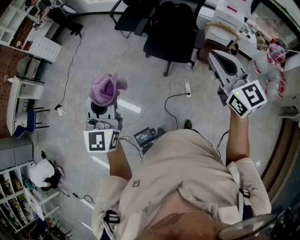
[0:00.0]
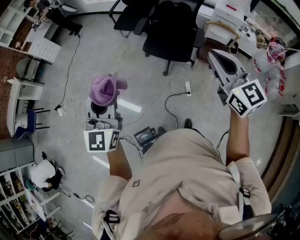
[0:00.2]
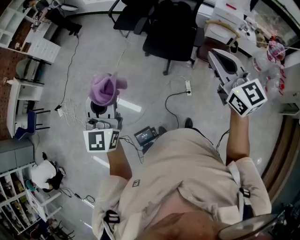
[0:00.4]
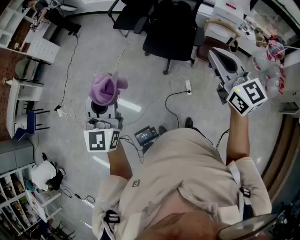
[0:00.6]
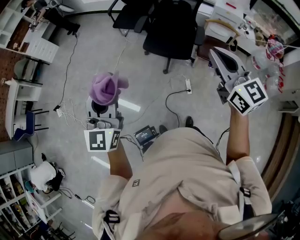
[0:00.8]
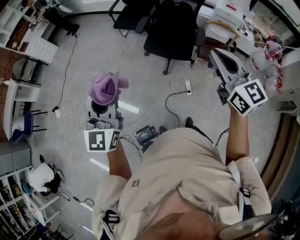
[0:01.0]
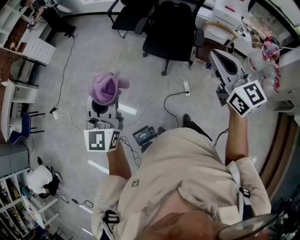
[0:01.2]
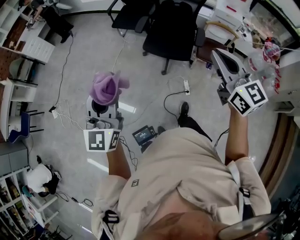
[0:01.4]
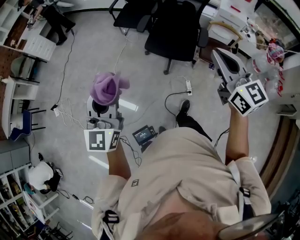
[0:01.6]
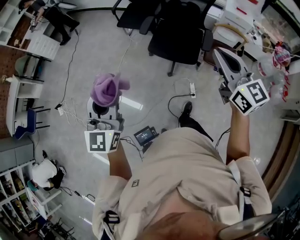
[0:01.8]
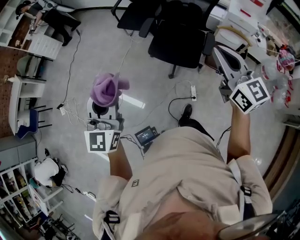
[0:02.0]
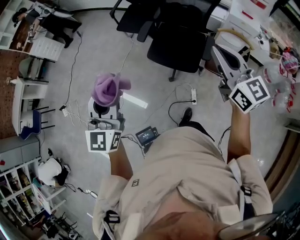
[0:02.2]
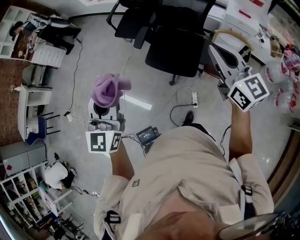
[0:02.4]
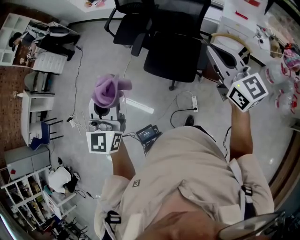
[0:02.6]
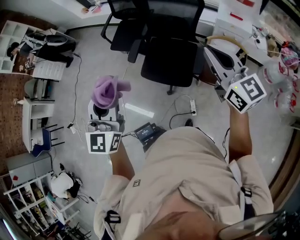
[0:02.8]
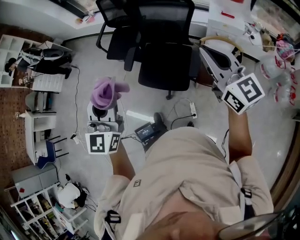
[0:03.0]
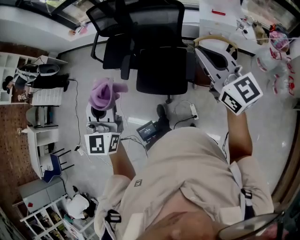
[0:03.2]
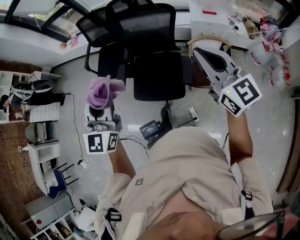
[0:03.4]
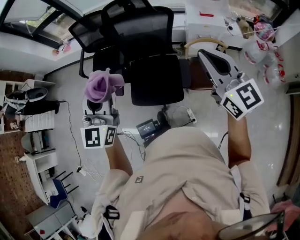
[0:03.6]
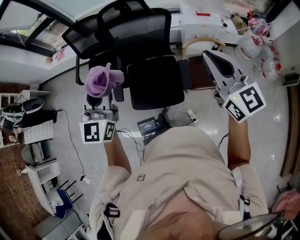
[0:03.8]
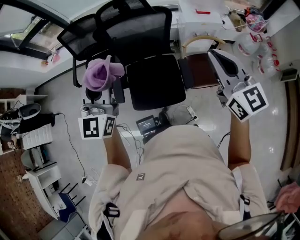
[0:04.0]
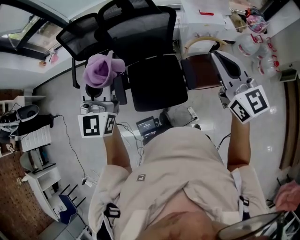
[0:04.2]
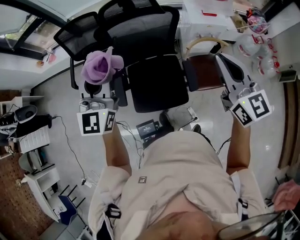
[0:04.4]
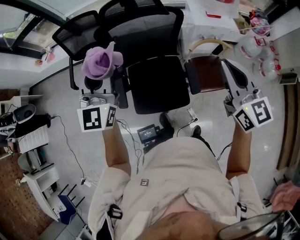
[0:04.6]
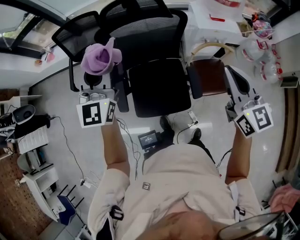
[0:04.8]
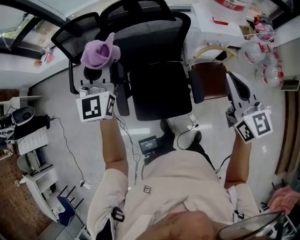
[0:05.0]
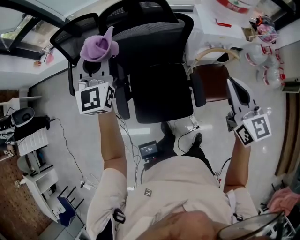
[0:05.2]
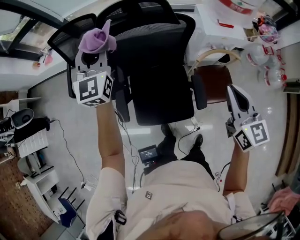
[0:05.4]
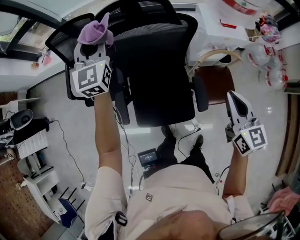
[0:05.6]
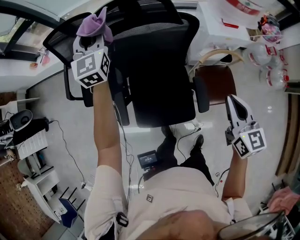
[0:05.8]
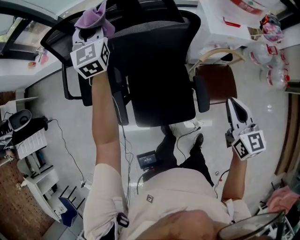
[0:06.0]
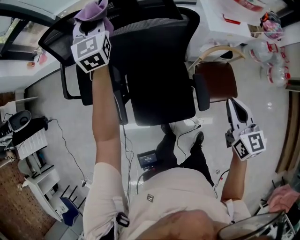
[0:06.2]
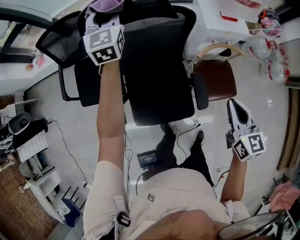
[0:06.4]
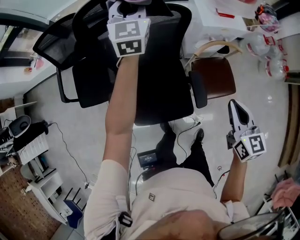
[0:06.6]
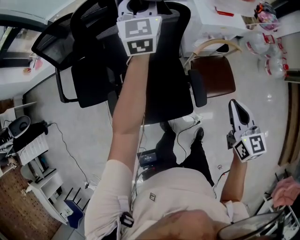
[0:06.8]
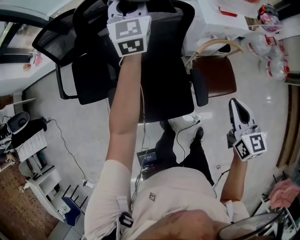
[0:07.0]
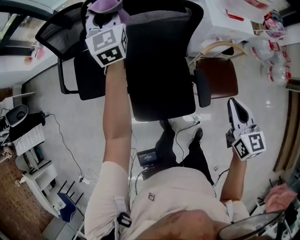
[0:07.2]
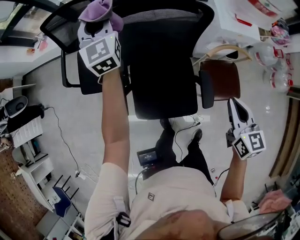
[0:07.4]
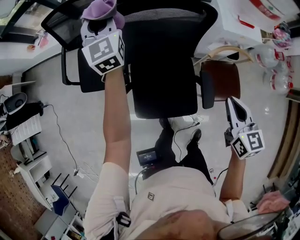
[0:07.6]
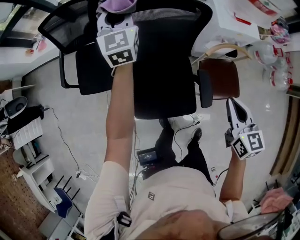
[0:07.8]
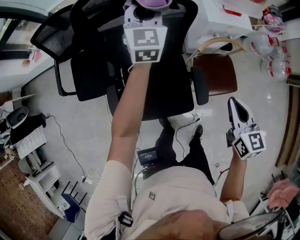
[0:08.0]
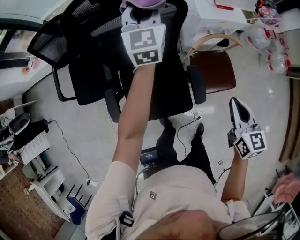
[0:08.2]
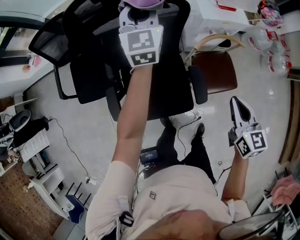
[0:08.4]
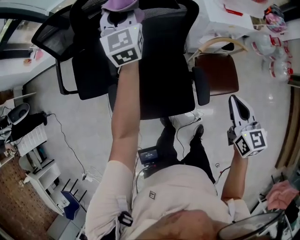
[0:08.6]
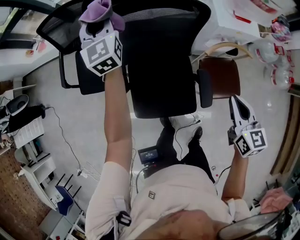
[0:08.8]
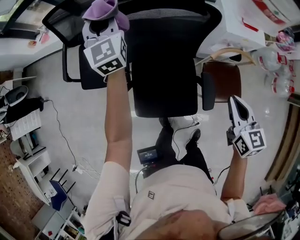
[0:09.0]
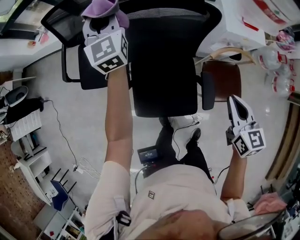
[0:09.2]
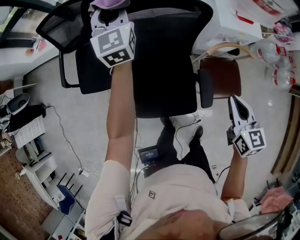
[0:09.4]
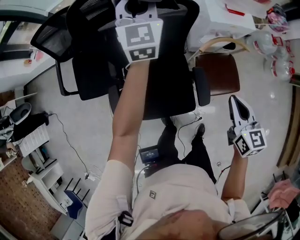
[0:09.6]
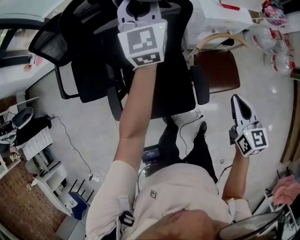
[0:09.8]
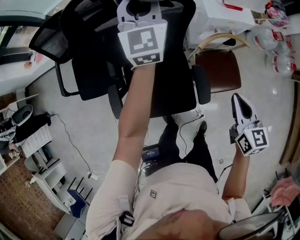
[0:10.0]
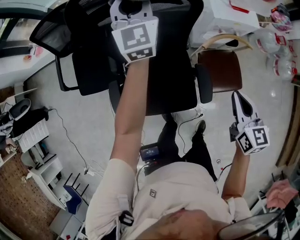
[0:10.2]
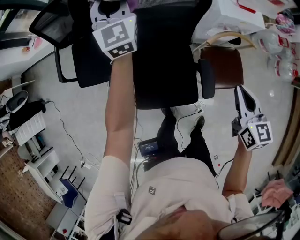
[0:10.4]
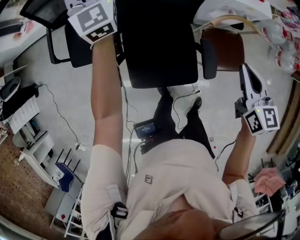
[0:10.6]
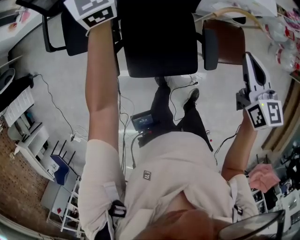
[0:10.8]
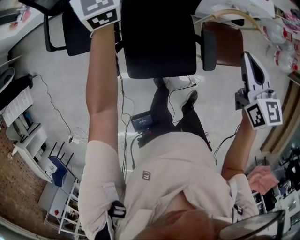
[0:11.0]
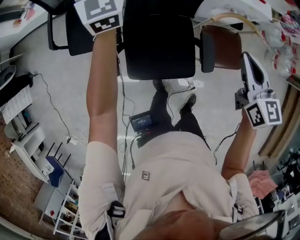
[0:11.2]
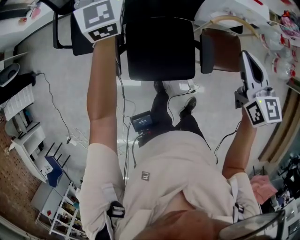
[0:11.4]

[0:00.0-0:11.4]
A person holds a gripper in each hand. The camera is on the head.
0:00.0 to 0:01.4: Both grippers travel together to the left, some 5 cm.
0:01.4 to 0:02.8: Both grippers move forward and to the right, some 40 cm.
0:02.8 to 0:04.2: The left gripper moves some 35 cm, and rotates approximately 30 degrees. Meanwhile the right gripper shifts by roughly 15 cm, and swivels roughly 30 degrees.
0:04.2 to 0:05.6: The left gripper shifts roughly 35 cm forward; the right gripper heads downward and forward, covering approximately 20 cm, and changes its angle by roughly 20 degrees.
0:05.6 to 0:07.2: The right gripper heads downward, covering approximately 10 cm, while the left gripper goes roughly 10 cm downward and forward, and moves approximately 20 cm to the right and comes back.
0:07.2 to 0:08.6: The left gripper swings left and right, approximately 25 cm each way, with 2 reversals. Meanwhile the right gripper goes to the right and returns, some 5 cm each way.
0:08.6 to 0:10.0: The left gripper goes roughly 10 cm to the right, while the right gripper moves roughly 5 cm to the left and comes back.
0:10.0 to 0:11.4: The left gripper shifts approximately 20 cm to the left; the right gripper goes some 10 cm to the left and upward.

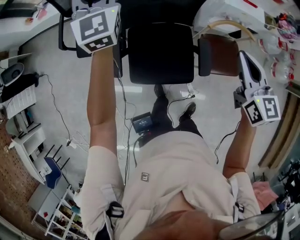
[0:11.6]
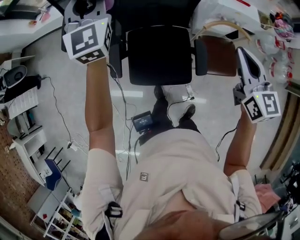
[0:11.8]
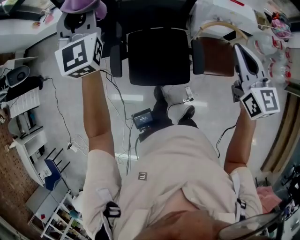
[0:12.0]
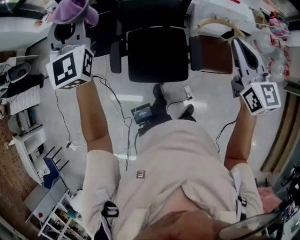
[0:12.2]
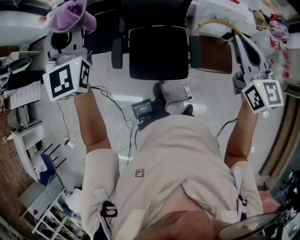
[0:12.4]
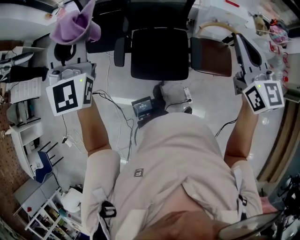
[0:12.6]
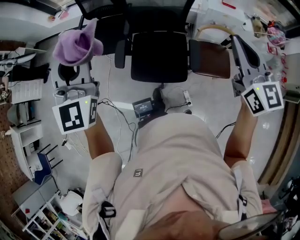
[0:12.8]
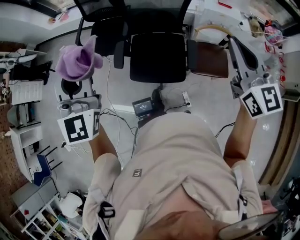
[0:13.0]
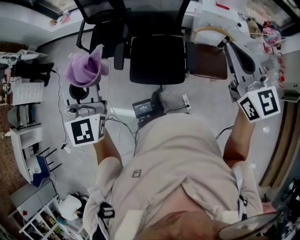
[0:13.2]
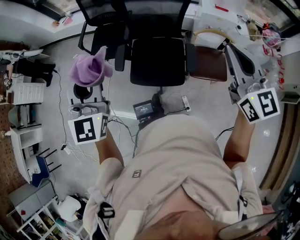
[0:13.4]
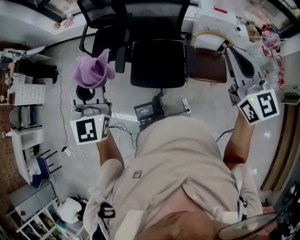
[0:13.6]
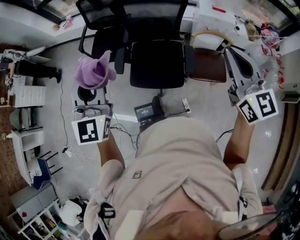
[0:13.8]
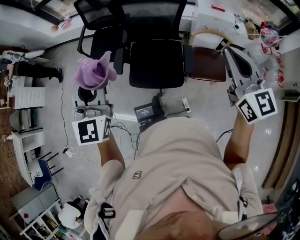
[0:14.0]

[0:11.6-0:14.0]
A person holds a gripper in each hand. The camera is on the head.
0:11.6 to 0:12.8: The right gripper heads upward and backward, covering about 25 cm. Meanwhile the left gripper goes roughly 40 cm backward and upward.
0:12.8 to 0:14.0: Both grippers move backward, about 10 cm.

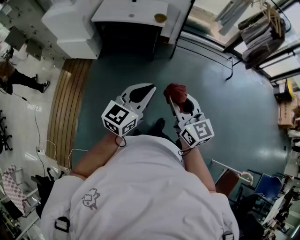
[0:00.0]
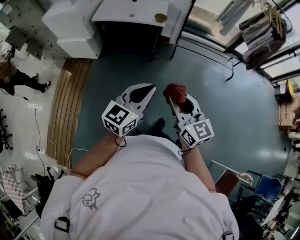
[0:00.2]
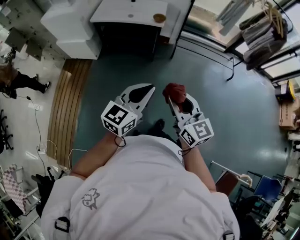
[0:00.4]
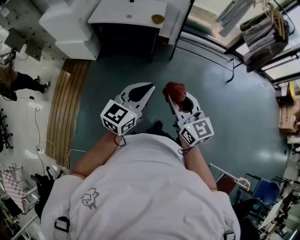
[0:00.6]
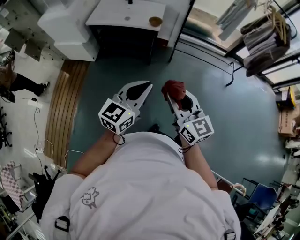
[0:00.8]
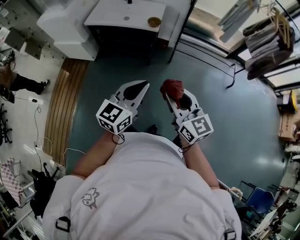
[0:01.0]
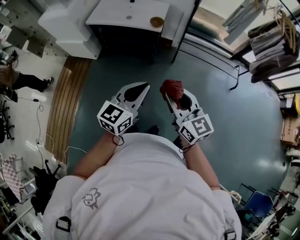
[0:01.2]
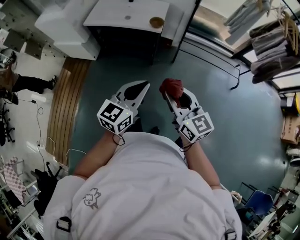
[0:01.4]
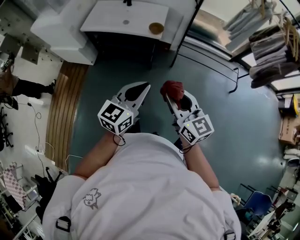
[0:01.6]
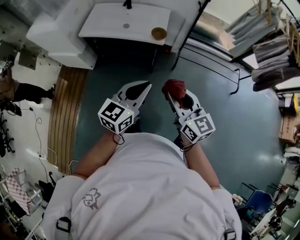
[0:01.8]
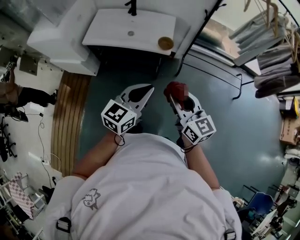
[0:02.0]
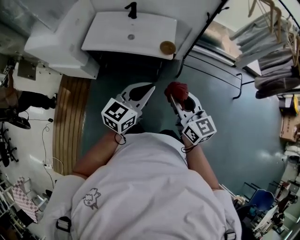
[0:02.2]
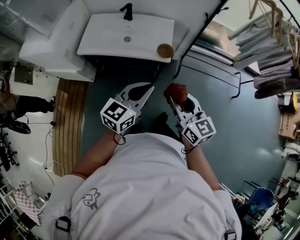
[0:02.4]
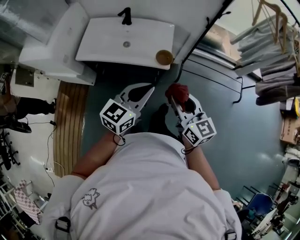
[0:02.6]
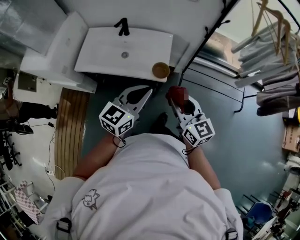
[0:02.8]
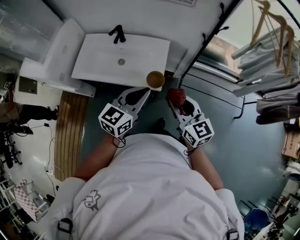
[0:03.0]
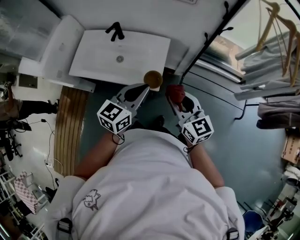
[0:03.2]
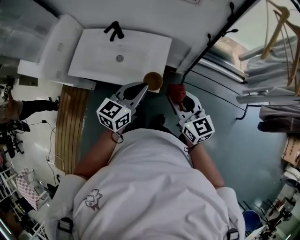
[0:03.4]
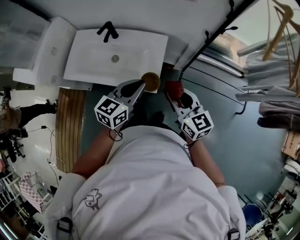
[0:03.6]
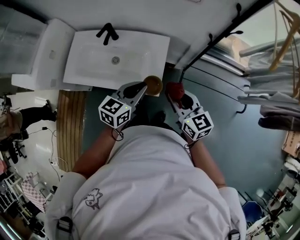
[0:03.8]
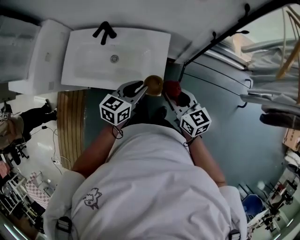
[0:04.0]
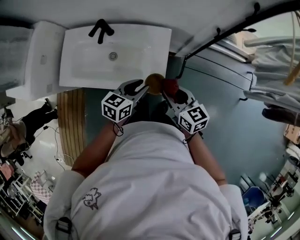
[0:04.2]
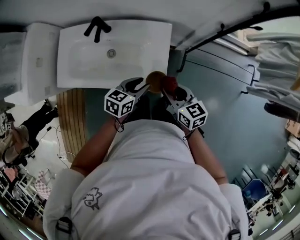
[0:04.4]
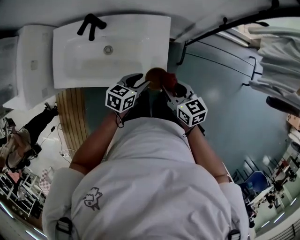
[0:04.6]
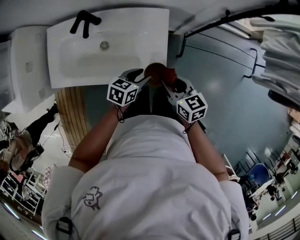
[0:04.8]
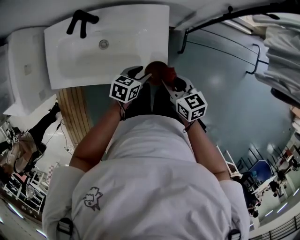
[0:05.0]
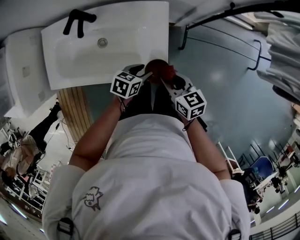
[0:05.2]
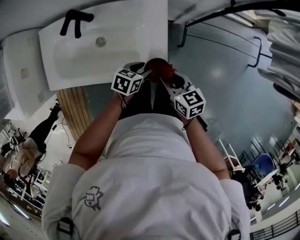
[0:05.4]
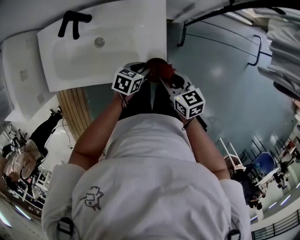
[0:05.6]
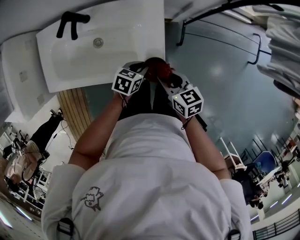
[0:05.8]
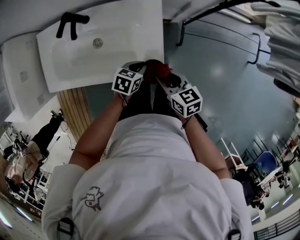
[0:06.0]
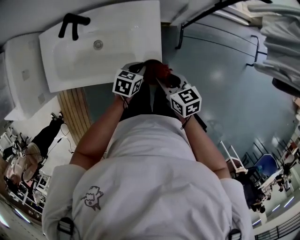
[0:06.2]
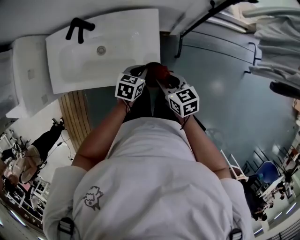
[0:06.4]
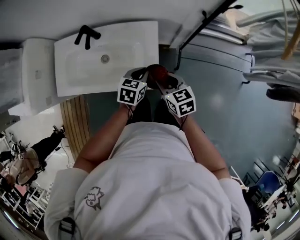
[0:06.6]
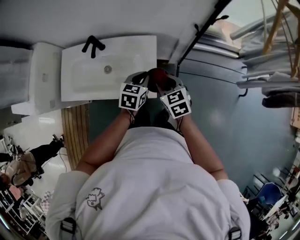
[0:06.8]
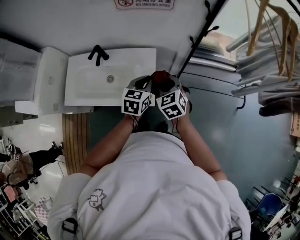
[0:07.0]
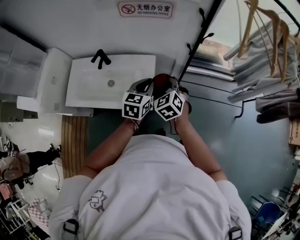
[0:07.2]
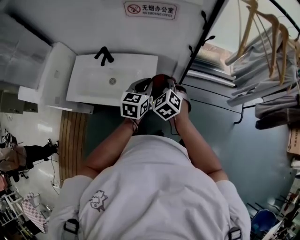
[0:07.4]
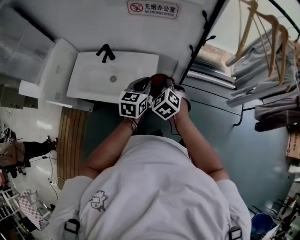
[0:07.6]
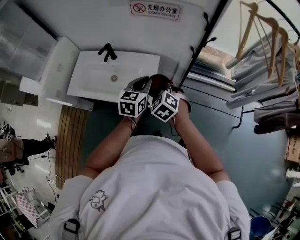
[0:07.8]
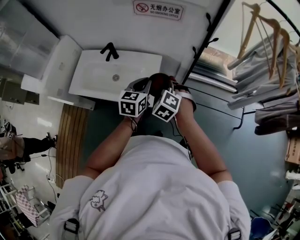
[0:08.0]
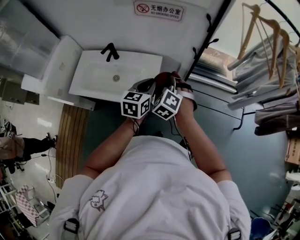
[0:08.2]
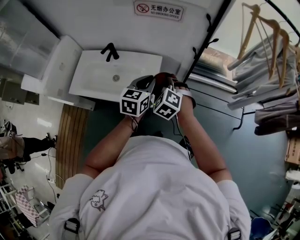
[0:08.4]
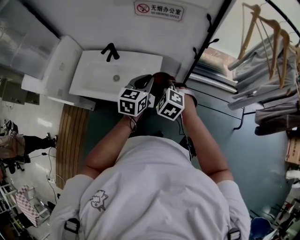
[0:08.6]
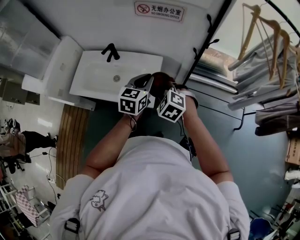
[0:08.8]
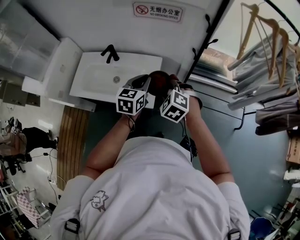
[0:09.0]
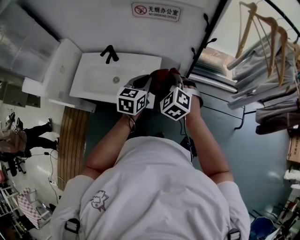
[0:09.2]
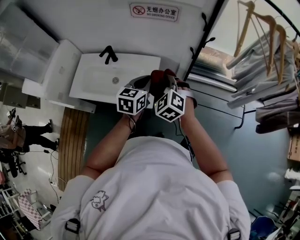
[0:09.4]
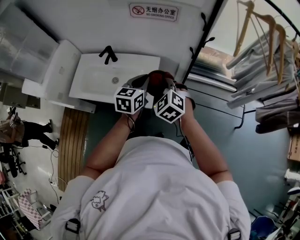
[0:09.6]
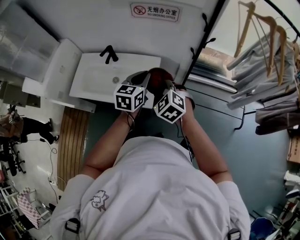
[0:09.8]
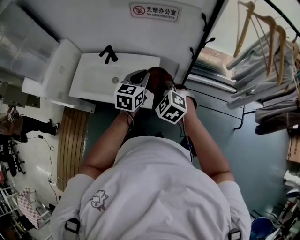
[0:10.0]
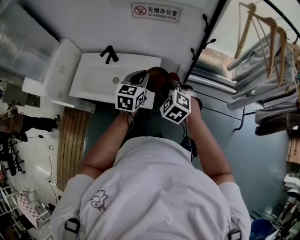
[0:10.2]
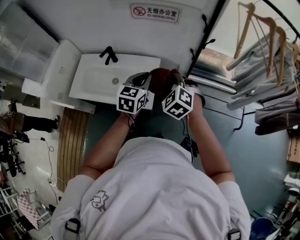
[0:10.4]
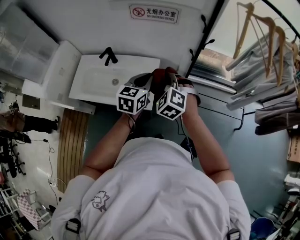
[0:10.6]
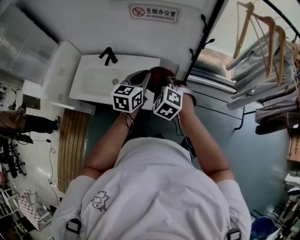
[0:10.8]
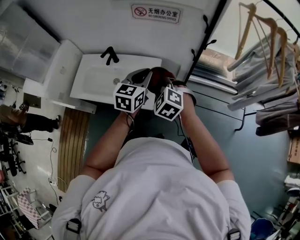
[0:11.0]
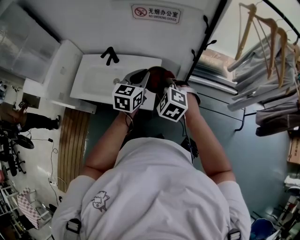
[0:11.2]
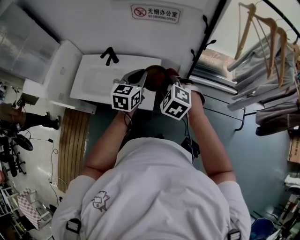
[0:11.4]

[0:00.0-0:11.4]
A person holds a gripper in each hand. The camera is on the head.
0:00.0 to 0:01.4: The grippers both shift forward by some 20 cm.
0:01.4 to 0:02.8: The two grippers go about 40 cm forward.
0:02.8 to 0:04.2: Both grippers travel together forward and downward, some 25 cm. The right gripper changes its angle by about 20 degrees. The left gripper rotates approximately 30 degrees, and opens.
0:04.2 to 0:05.6: Both grippers travel together downward, approximately 15 cm. The left gripper rotates some 30 degrees.
0:05.6 to 0:07.2: The right gripper travels upward by roughly 15 cm, and rotates around the line of its fingers by approximately 50 degrees, counterclockwise from behind; the left gripper is displaced upward by some 30 cm, and swivels roughly 40 degrees.
0:07.2 to 0:08.6: The right gripper travels backward by approximately 5 cm, and changes its angle by about 30 degrees, while the left gripper shifts by approximately 5 cm.
